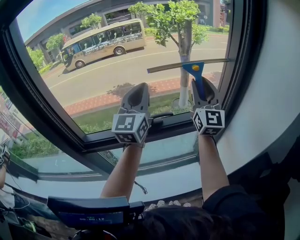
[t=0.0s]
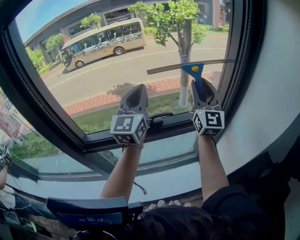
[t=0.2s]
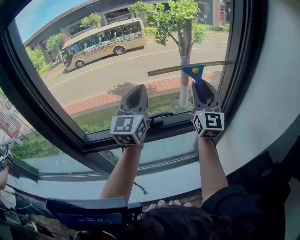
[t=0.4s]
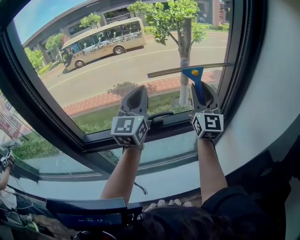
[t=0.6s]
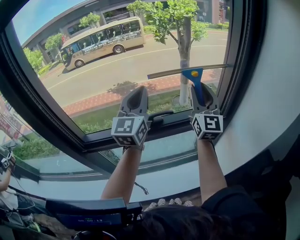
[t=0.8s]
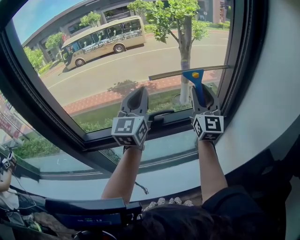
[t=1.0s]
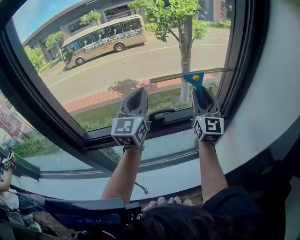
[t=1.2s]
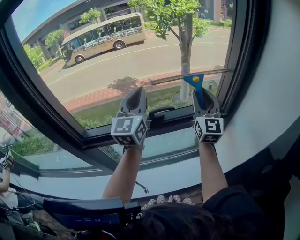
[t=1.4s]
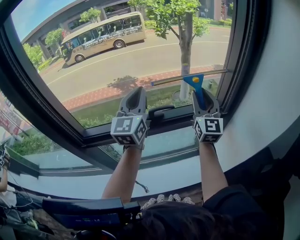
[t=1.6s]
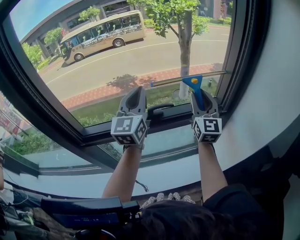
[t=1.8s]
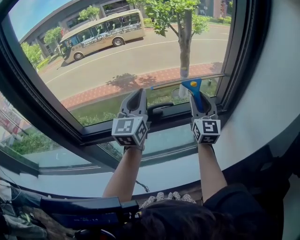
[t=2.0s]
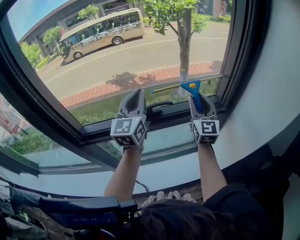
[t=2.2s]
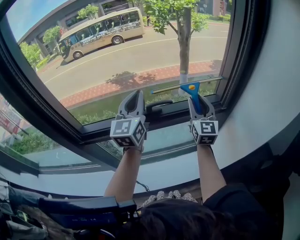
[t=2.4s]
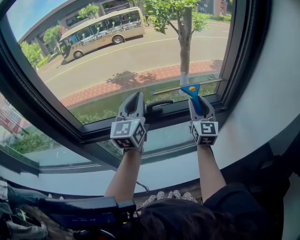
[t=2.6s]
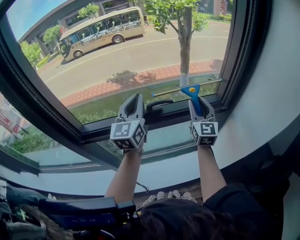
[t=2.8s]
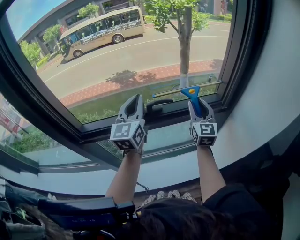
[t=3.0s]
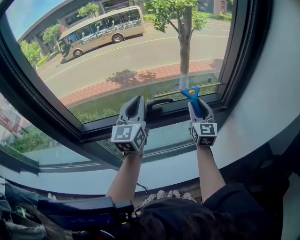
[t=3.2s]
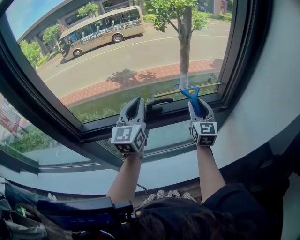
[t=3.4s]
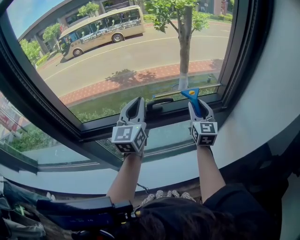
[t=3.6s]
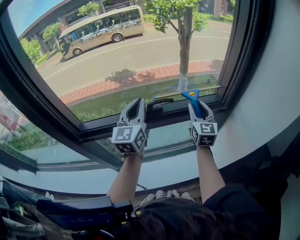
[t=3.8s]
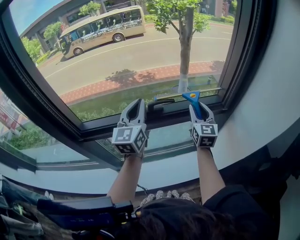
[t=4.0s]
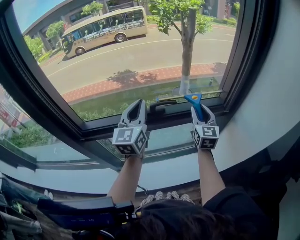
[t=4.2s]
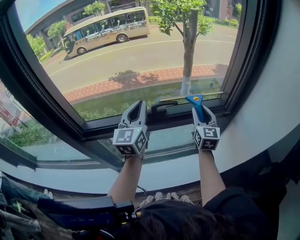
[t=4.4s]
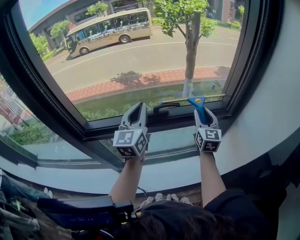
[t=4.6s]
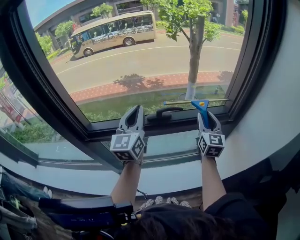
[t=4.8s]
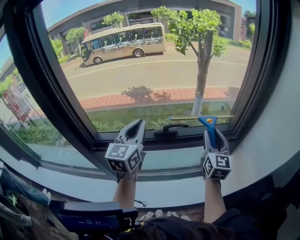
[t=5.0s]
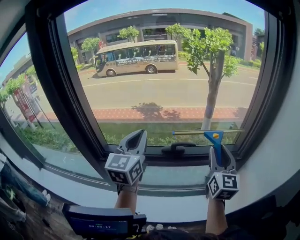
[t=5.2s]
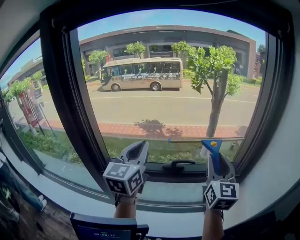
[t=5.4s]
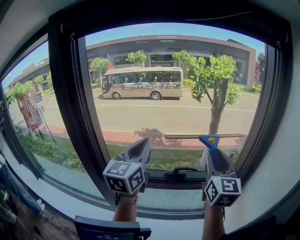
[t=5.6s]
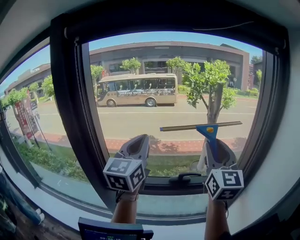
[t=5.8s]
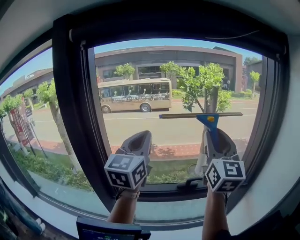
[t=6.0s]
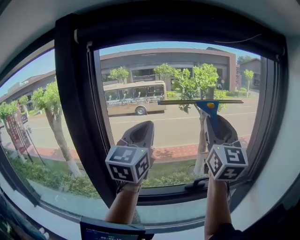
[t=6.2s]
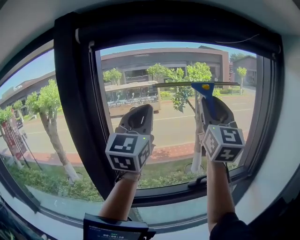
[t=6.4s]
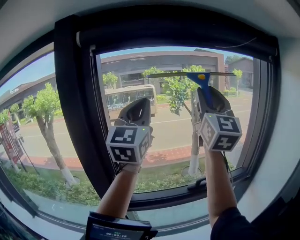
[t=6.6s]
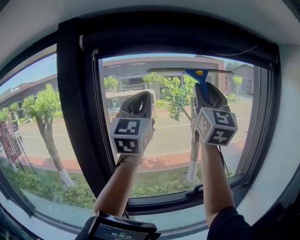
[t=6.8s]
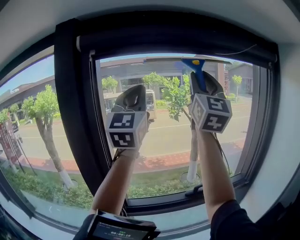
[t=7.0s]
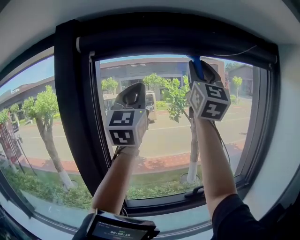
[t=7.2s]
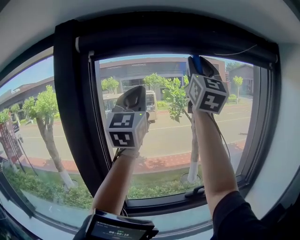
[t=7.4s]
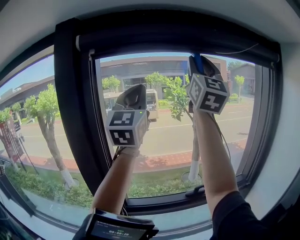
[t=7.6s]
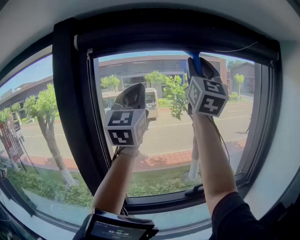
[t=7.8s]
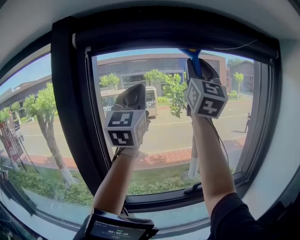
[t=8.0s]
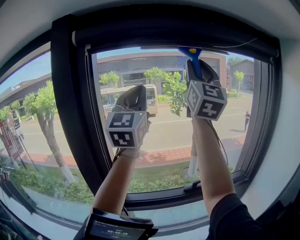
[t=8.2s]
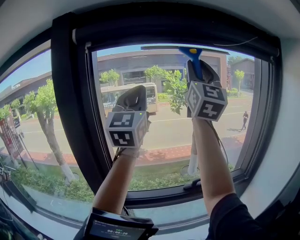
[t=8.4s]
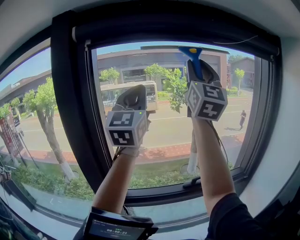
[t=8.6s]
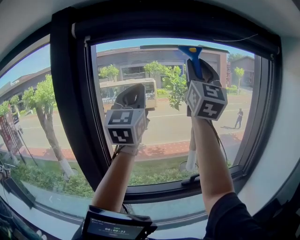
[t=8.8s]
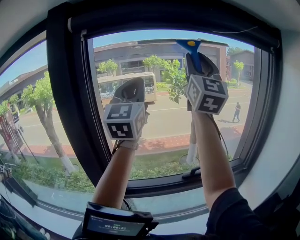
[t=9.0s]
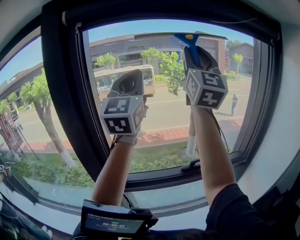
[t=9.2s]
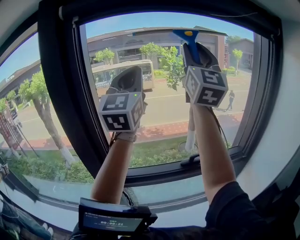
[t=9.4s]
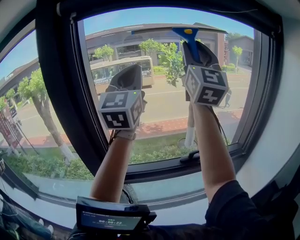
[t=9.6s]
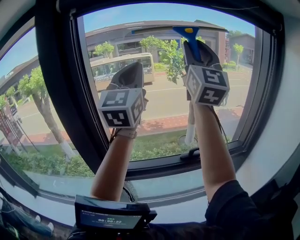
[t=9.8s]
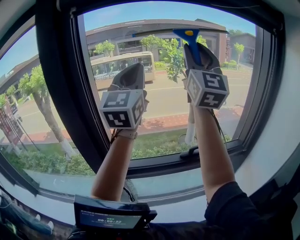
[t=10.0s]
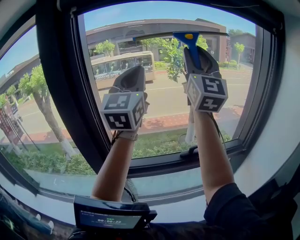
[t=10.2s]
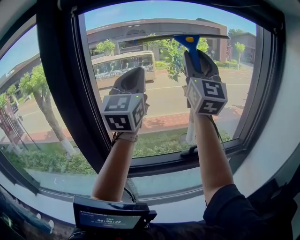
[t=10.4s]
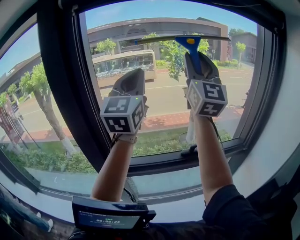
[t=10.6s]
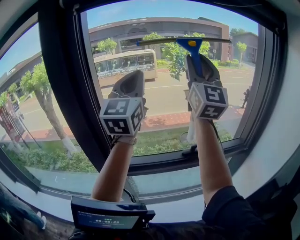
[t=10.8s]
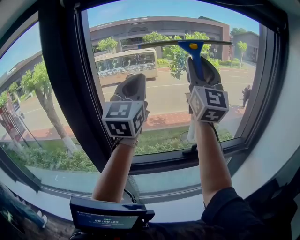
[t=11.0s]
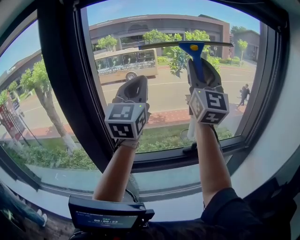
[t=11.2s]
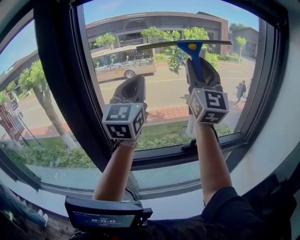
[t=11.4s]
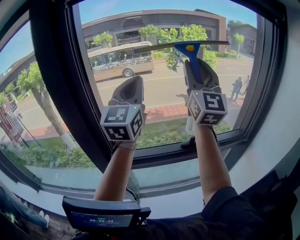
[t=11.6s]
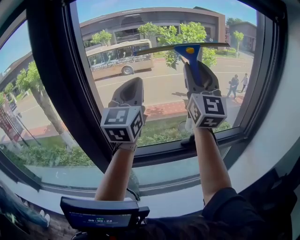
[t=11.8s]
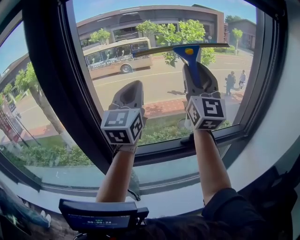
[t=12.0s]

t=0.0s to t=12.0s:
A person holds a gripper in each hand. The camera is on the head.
t=0.0s to t=1.6s: The right gripper goes about 10 cm downward, while the left gripper changes place by roughly 5 cm.
t=1.6s to t=3.0s: The right gripper travels downward by roughly 10 cm; the left gripper shifts some 5 cm downward.
t=3.0s to t=4.4s: The grippers make only small movements.
t=4.4s to t=6.0s: The two grippers go roughly 35 cm upward and to the left. The right gripper turns by some 30 degrees.
t=6.0s to t=7.6s: The two grippers go approximately 25 cm upward. The right gripper turns by about 30 degrees, while the left gripper rotates roughly 20 degrees.
t=7.6s to t=9.0s: The right gripper goes about 5 cm downward.
t=9.0s to t=10.4s: Both grippers travel together downward, some 5 cm.
t=10.4s to t=12.0s: Both grippers travel together downward, some 10 cm.

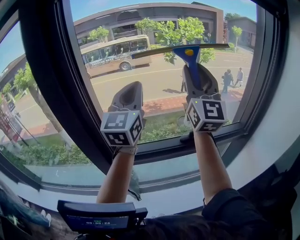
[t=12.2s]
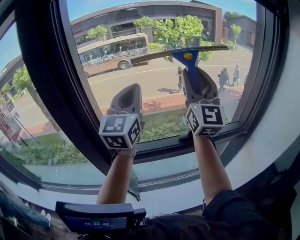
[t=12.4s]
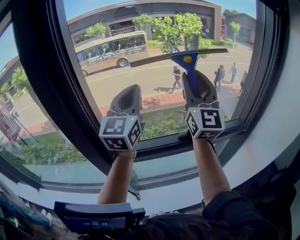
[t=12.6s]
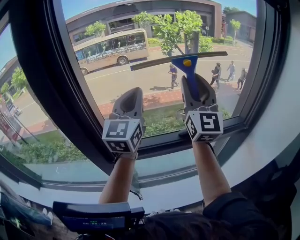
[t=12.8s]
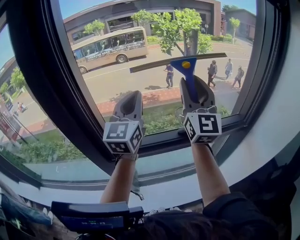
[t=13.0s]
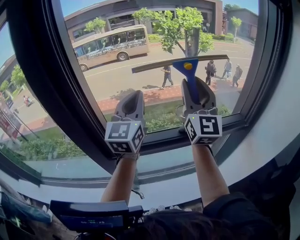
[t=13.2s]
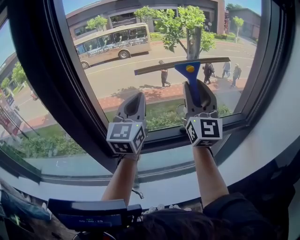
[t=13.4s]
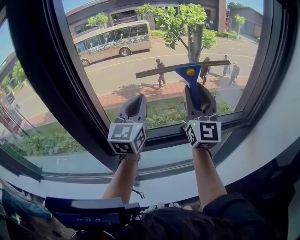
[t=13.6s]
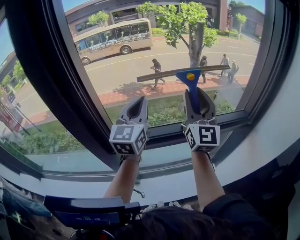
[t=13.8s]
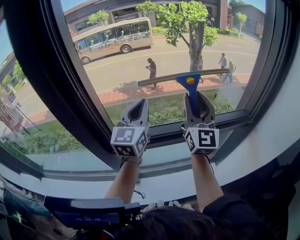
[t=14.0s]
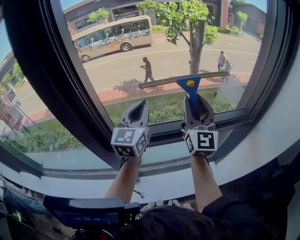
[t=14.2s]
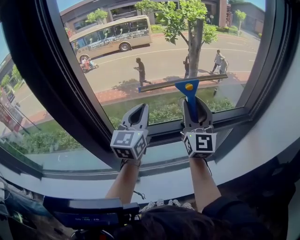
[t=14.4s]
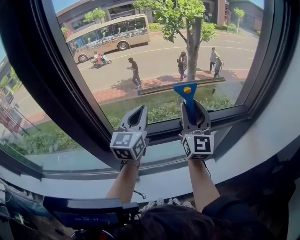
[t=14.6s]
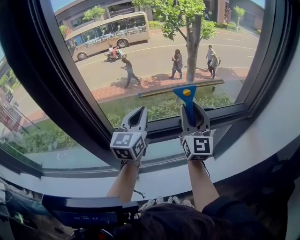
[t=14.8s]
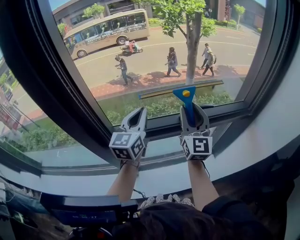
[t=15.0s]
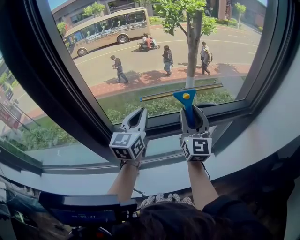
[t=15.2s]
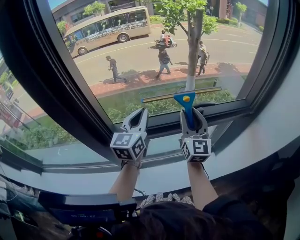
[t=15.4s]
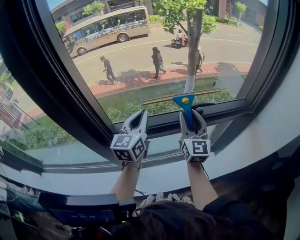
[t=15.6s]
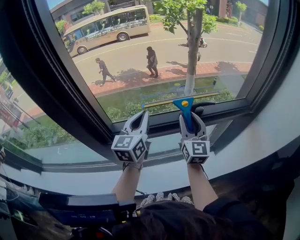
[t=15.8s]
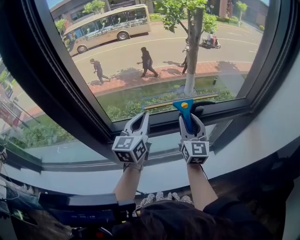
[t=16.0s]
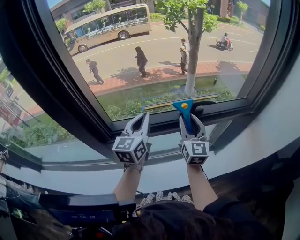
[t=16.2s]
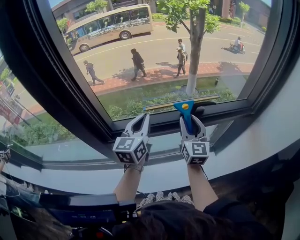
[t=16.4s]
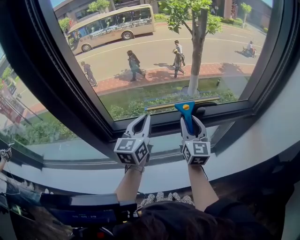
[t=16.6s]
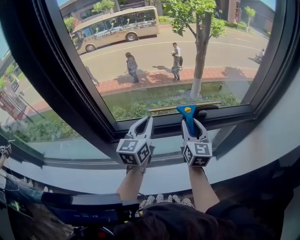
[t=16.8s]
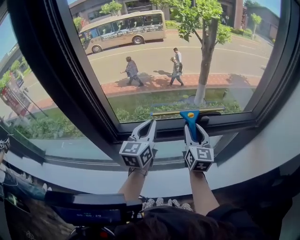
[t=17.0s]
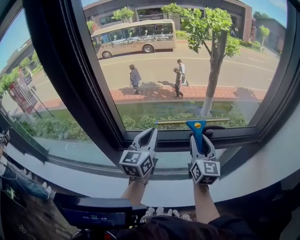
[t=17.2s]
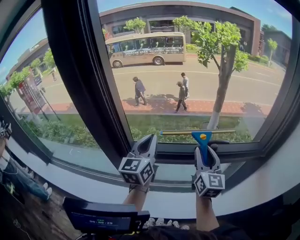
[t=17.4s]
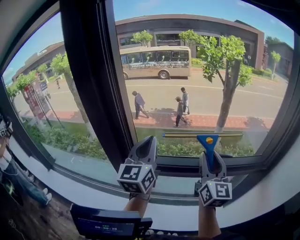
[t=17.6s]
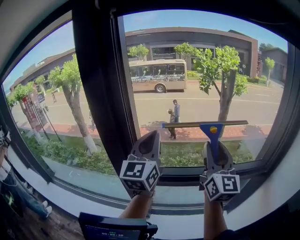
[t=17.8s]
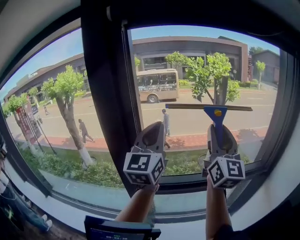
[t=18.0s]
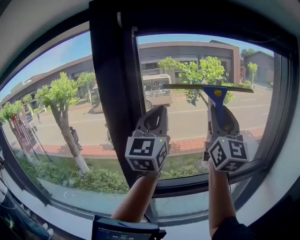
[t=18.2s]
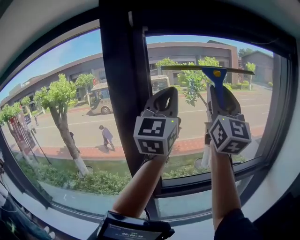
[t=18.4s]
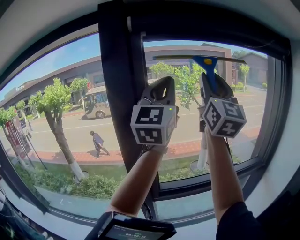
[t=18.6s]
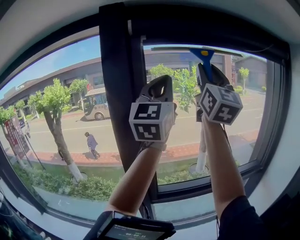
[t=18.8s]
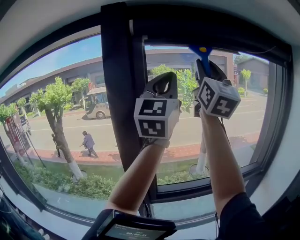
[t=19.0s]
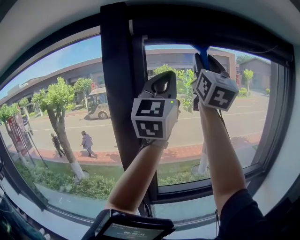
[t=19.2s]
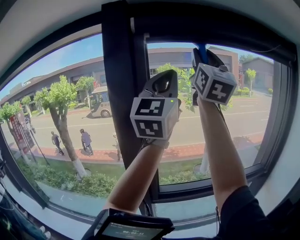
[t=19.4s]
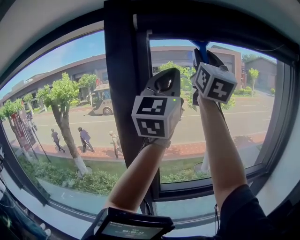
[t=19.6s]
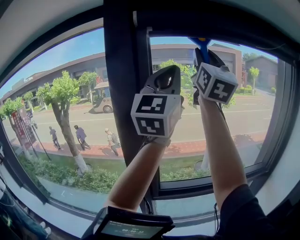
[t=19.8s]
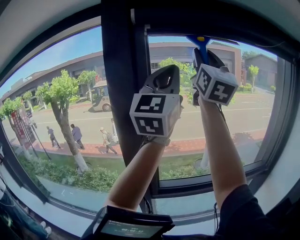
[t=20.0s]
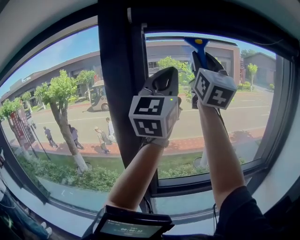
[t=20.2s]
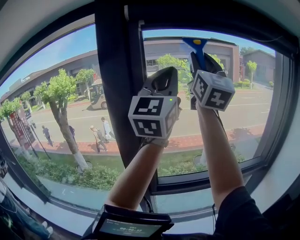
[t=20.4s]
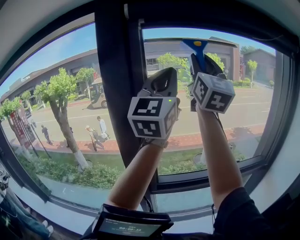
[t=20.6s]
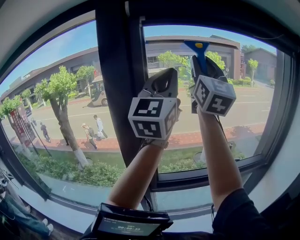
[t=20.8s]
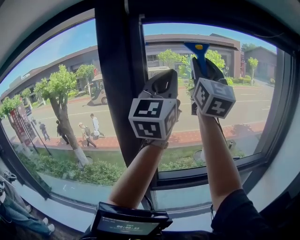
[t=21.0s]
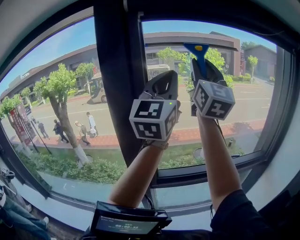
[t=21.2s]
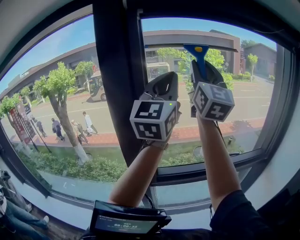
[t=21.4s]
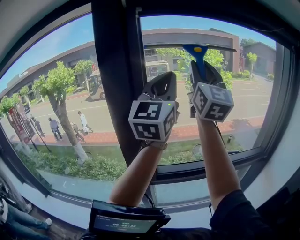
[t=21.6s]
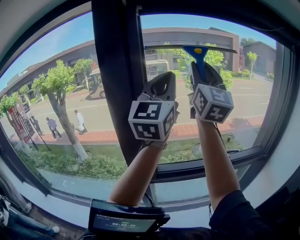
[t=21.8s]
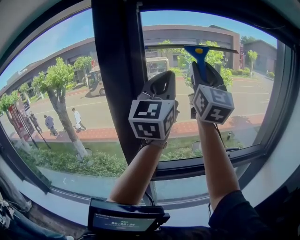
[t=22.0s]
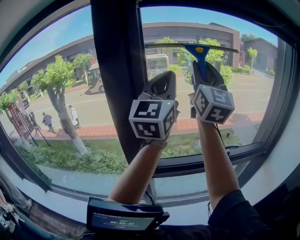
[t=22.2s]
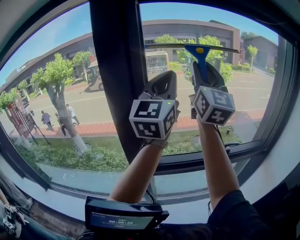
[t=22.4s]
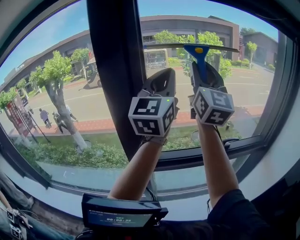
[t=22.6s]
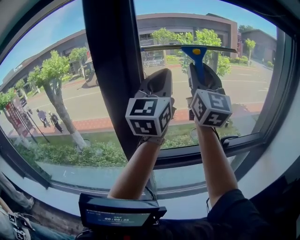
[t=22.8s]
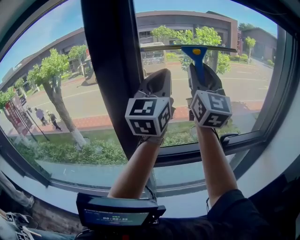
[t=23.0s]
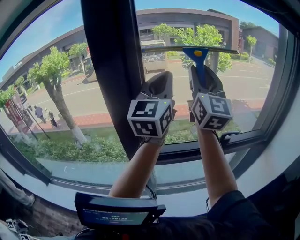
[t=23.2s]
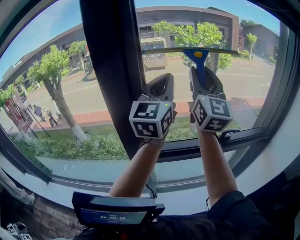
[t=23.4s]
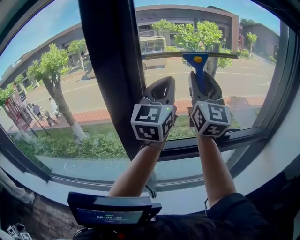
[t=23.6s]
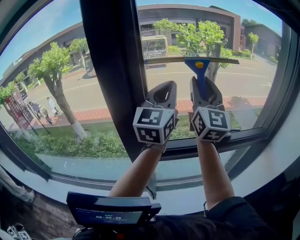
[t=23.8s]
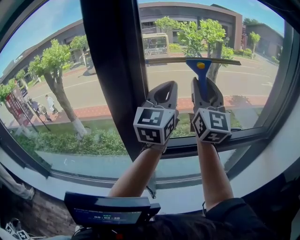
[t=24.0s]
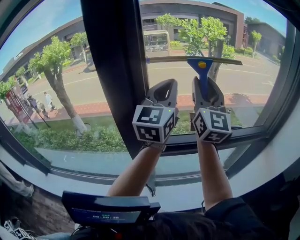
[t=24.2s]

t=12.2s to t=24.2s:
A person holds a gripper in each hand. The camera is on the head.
t=12.2s to t=13.8s: The grippers both shift downward by roughly 15 cm.
t=13.8s to t=15.2s: The grippers both shift downward by about 10 cm.
t=15.2s to t=16.6s: The right gripper travels downward by about 5 cm.
t=16.6s to t=18.2s: Both grippers move upward, roughly 40 cm. The right gripper tilts its fingers roughly 40 degrees upward; the left gripper tips its fingers upward by about 30 degrees.
t=18.2s to t=19.8s: The right gripper travels upward and to the left by roughly 20 cm. The left gripper shifts approximately 15 cm upward.
t=19.8s to t=21.2s: The two grippers go about 10 cm downward.
t=21.2s to t=22.6s: The grippers both shift downward by roughly 10 cm.
t=22.6s to t=24.2s: Both grippers move downward, some 10 cm.
